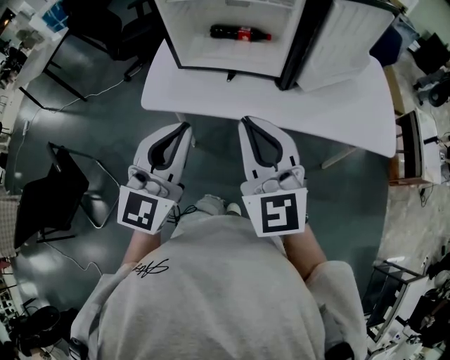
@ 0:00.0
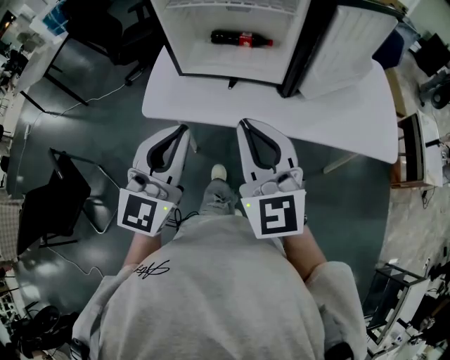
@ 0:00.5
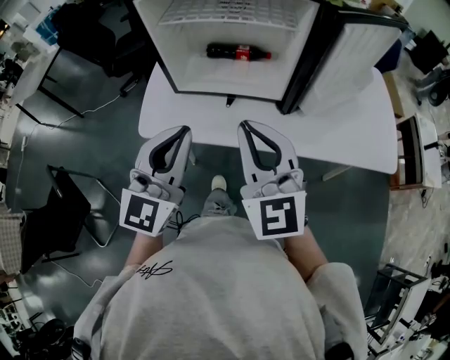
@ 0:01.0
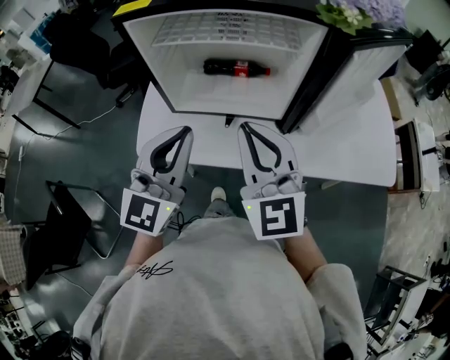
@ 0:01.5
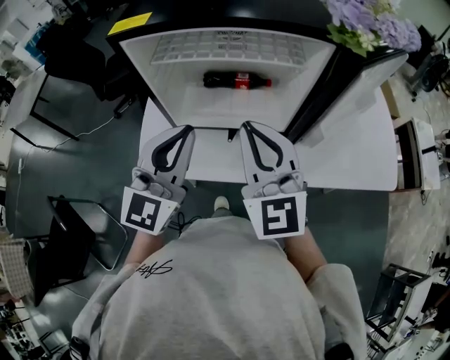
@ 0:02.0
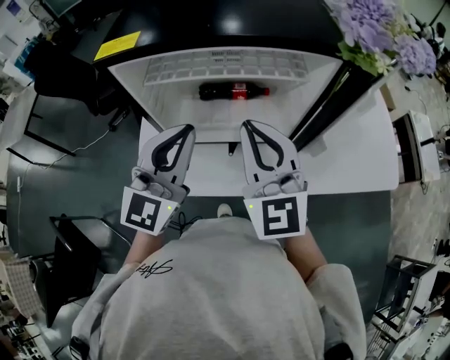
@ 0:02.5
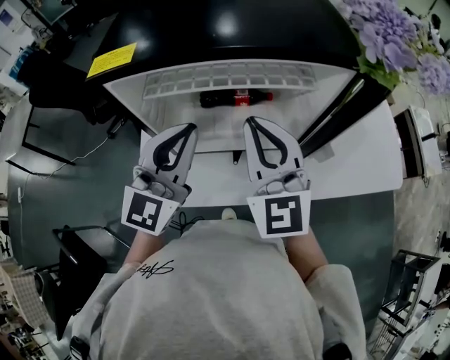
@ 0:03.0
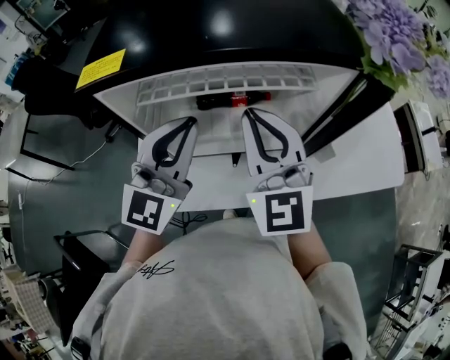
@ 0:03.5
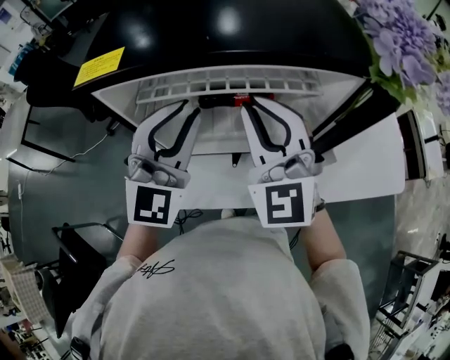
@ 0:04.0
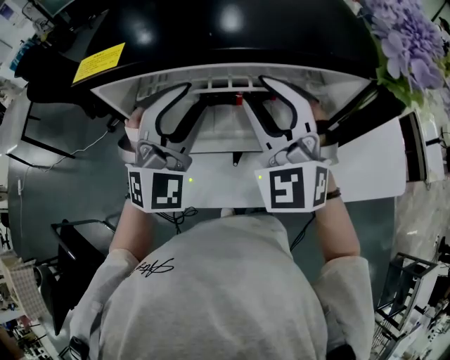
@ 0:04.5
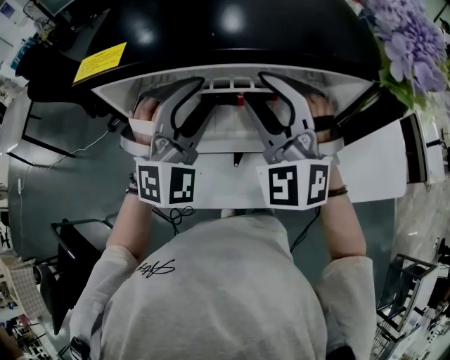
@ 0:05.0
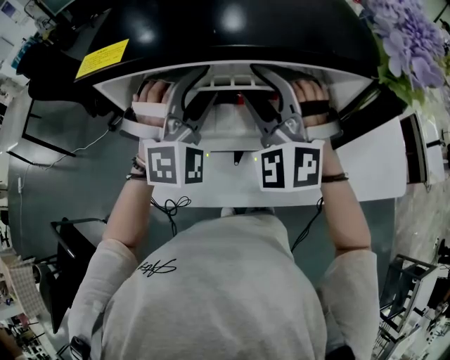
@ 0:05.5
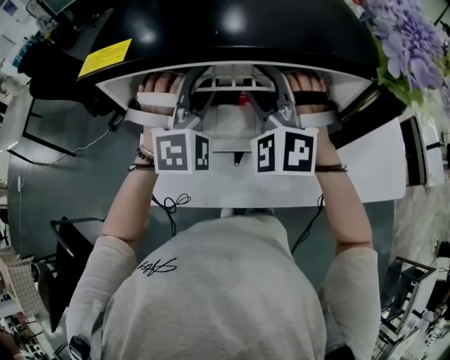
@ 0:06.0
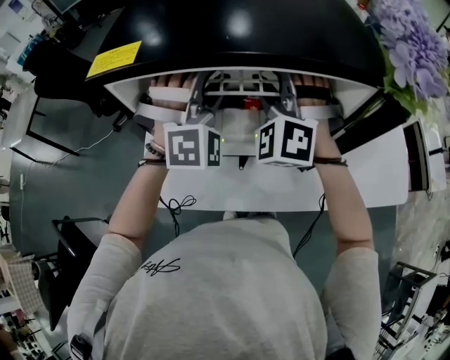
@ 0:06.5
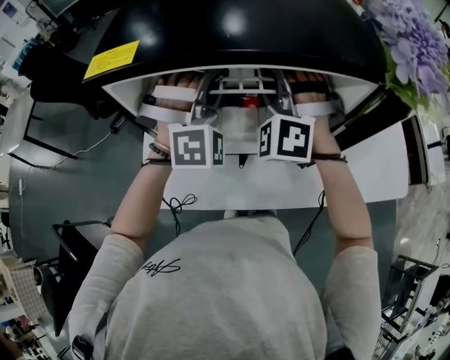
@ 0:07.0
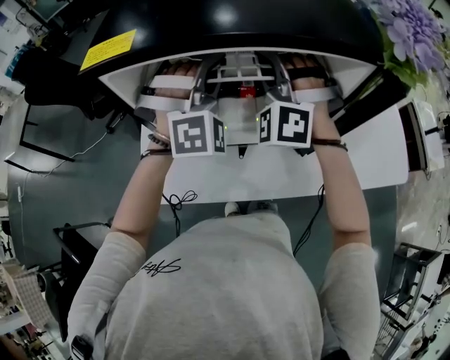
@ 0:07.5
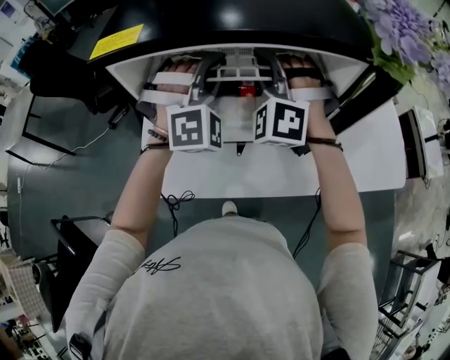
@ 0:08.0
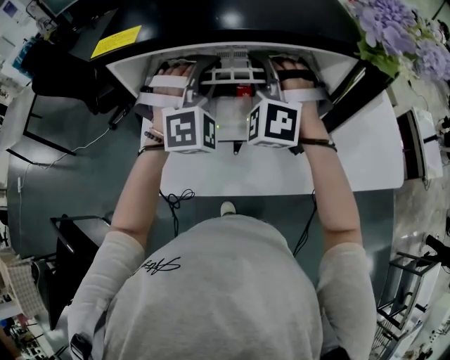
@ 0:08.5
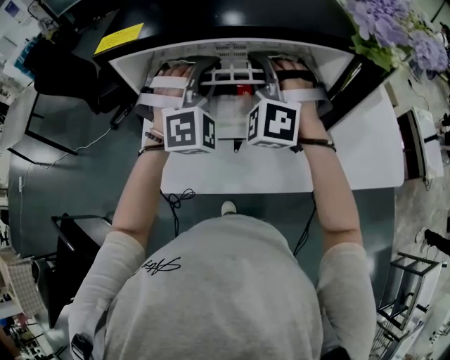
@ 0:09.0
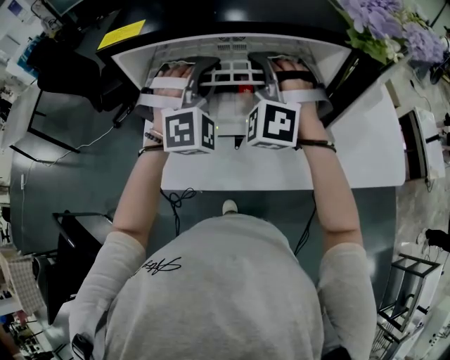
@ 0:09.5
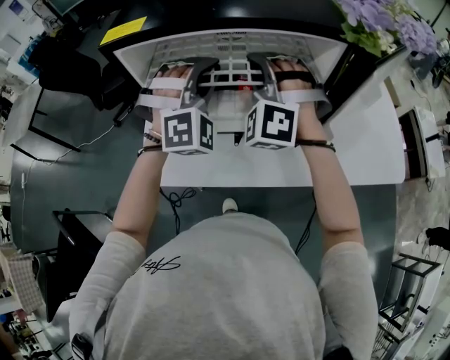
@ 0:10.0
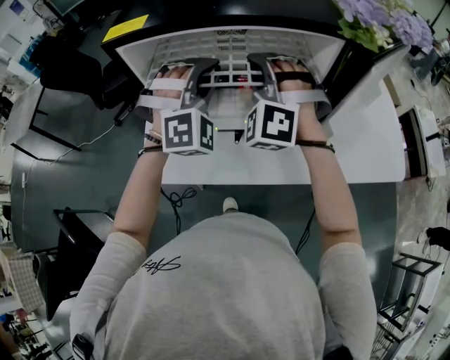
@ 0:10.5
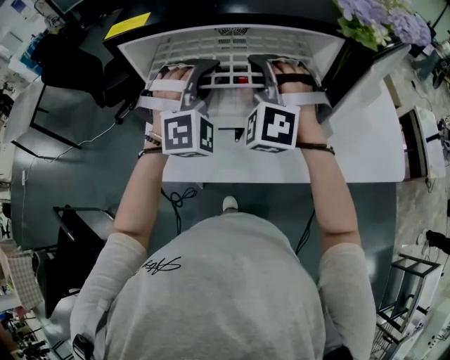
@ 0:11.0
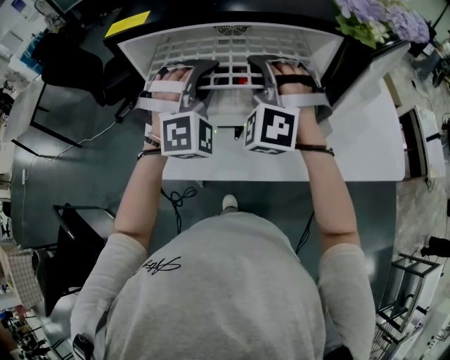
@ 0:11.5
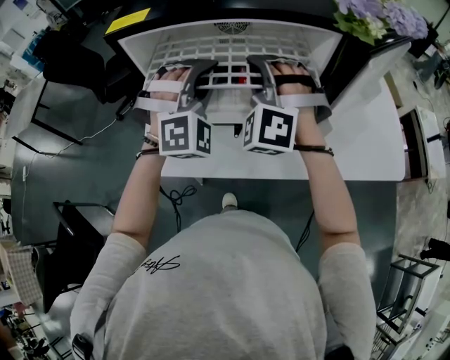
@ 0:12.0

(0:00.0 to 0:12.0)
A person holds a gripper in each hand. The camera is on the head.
0:00.0 - 0:02.0: The grippers both shift forward by about 20 cm.
0:02.0 - 0:04.0: Both grippers move forward, about 10 cm. The left gripper changes its angle by approximately 20 degrees.
0:04.0 - 0:06.0: The two grippers go some 10 cm forward. The right gripper changes its angle by about 40 degrees, and opens its fingers, while the left gripper twists approximately 40 degrees clockwise, seen from behind, and opens up.
0:06.0 - 0:08.0: The left gripper closes its fingers; the right gripper closes its fingers.
0:08.0 - 0:10.0: There are only small adjustments of the grippers.
0:10.0 - 0:12.0: The grippers move only a little.

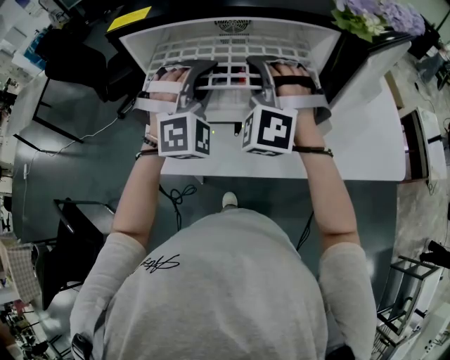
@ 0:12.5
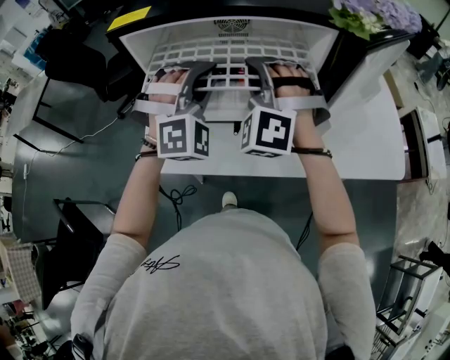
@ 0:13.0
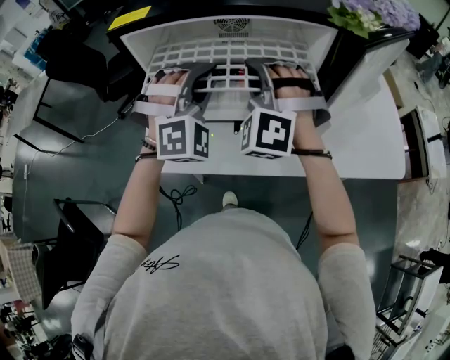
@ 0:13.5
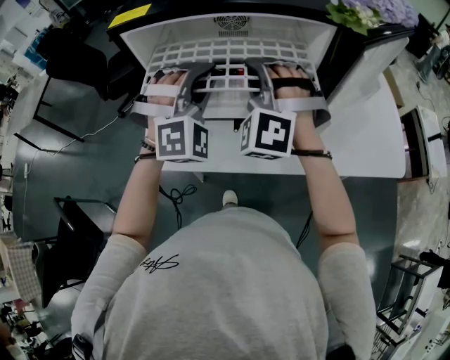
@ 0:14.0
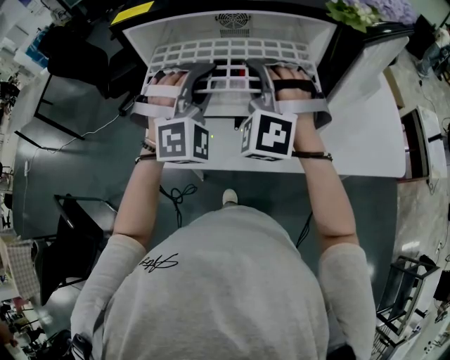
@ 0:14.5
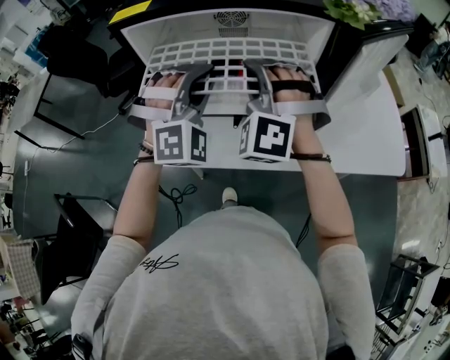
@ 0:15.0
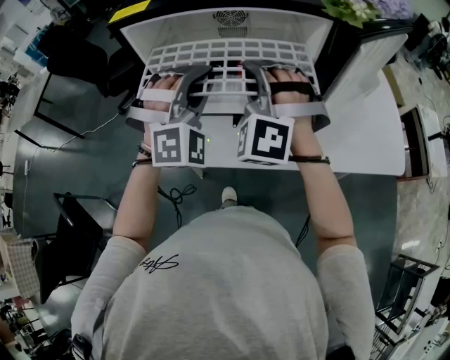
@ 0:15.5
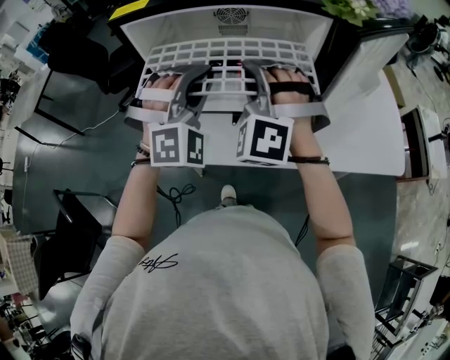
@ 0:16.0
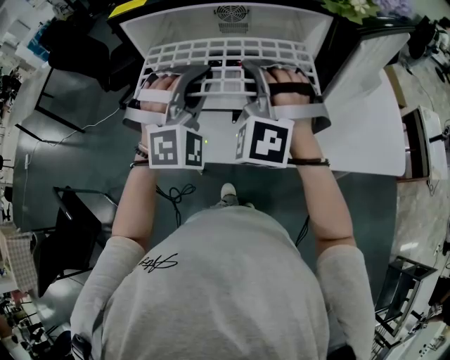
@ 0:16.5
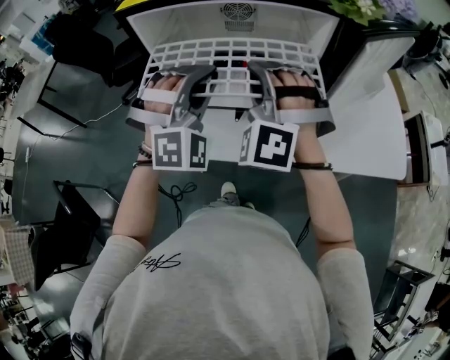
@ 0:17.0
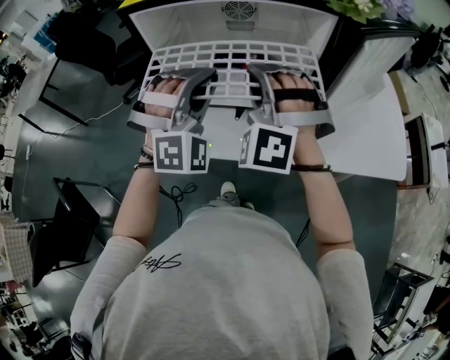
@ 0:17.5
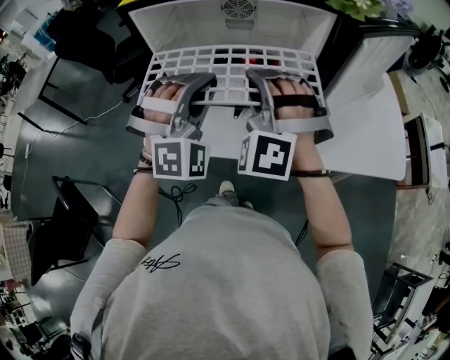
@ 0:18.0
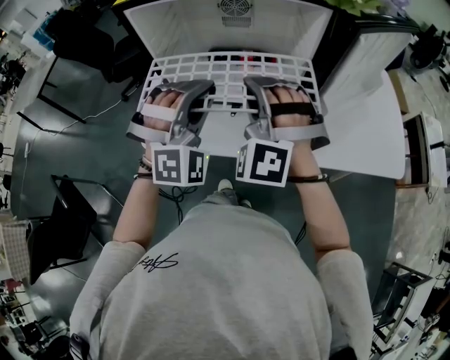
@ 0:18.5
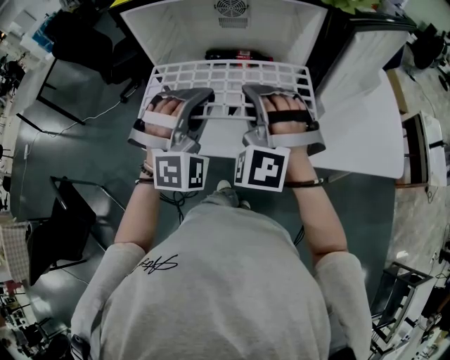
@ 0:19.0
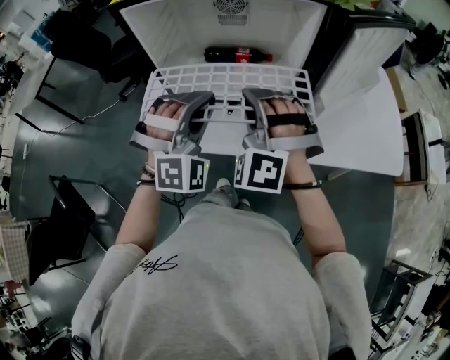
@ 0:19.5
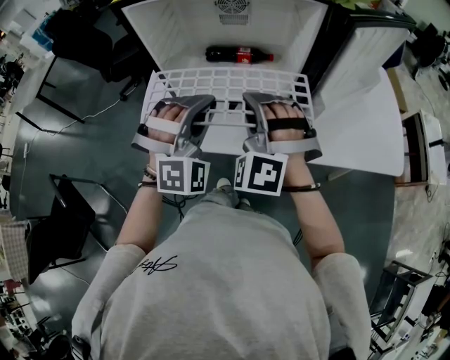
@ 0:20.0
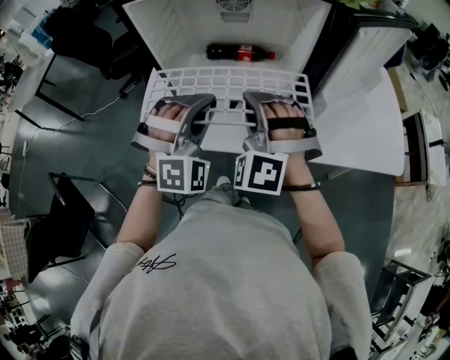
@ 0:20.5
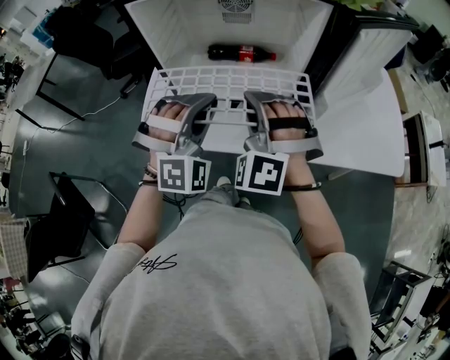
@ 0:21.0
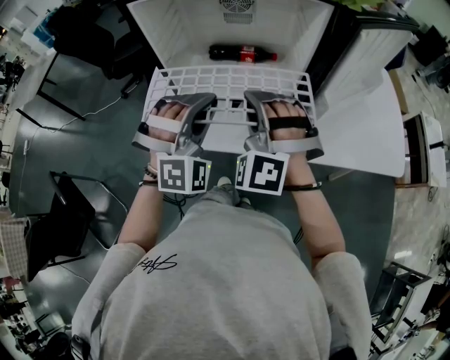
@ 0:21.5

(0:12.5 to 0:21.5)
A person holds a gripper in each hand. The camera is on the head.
0:12.5 - 0:14.5: The grippers make only small movements.
0:14.5 - 0:17.0: The grippers stay close to where they were, moving slightly.
0:17.0 - 0:19.5: The grippers both shift downward and backward by roughly 10 cm.
0:19.5 - 0:21.5: The grippers make only small movements.

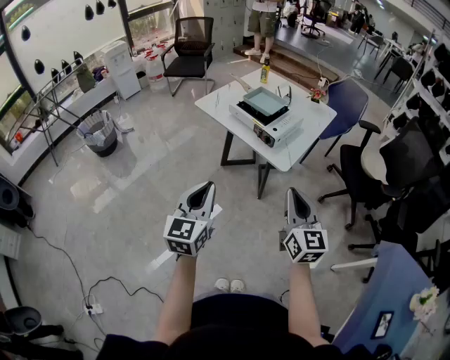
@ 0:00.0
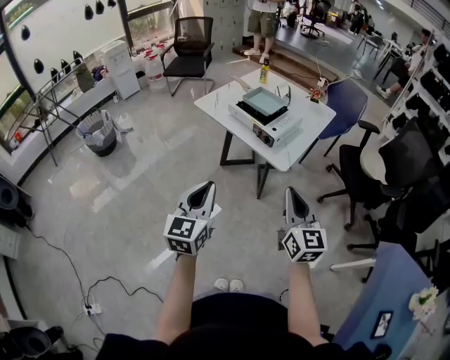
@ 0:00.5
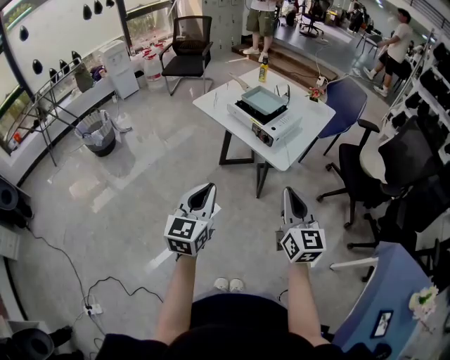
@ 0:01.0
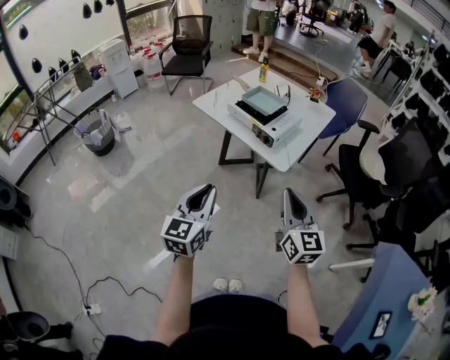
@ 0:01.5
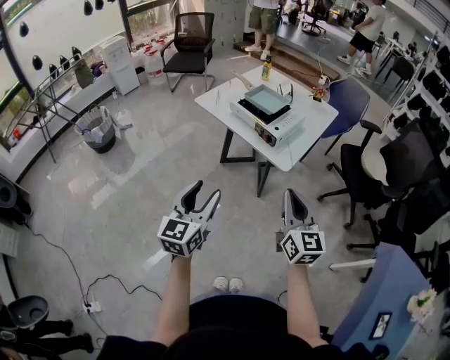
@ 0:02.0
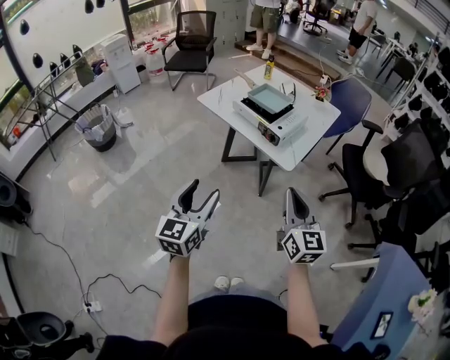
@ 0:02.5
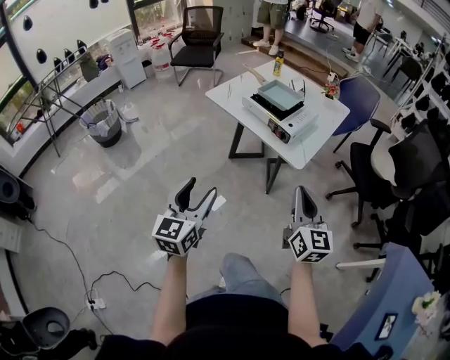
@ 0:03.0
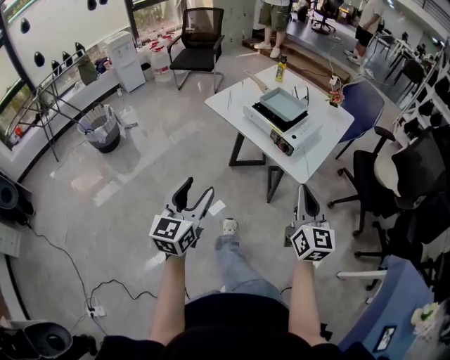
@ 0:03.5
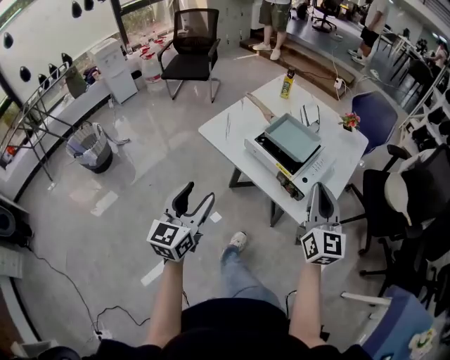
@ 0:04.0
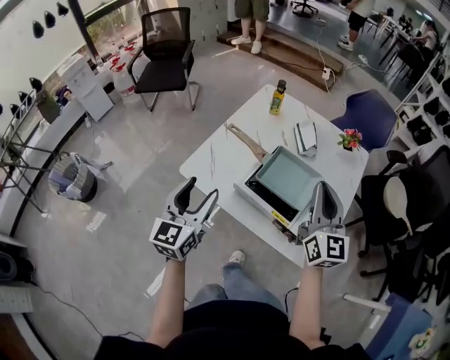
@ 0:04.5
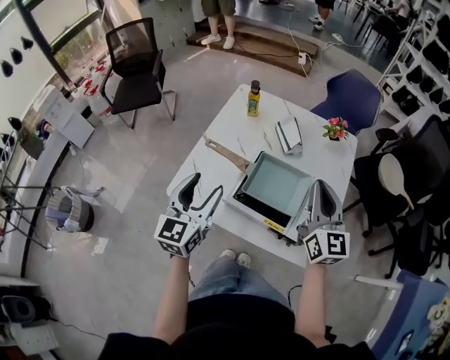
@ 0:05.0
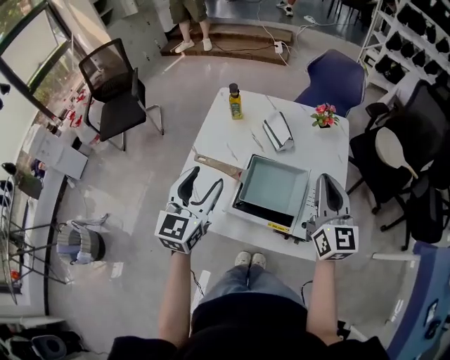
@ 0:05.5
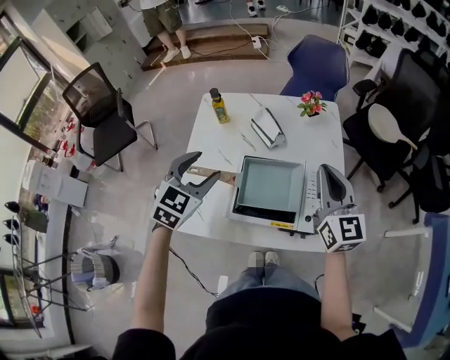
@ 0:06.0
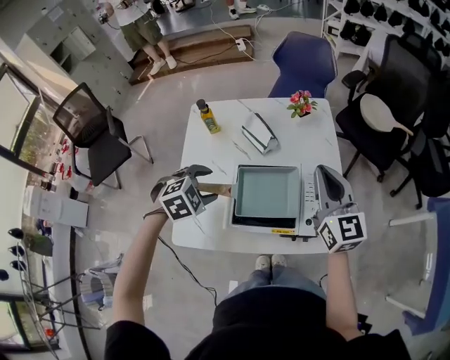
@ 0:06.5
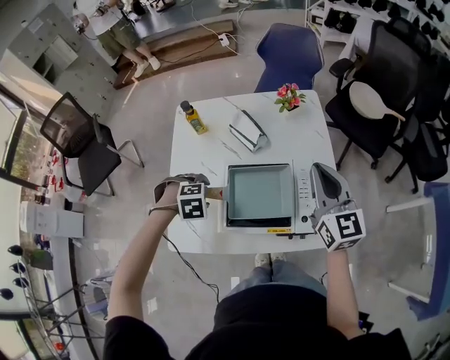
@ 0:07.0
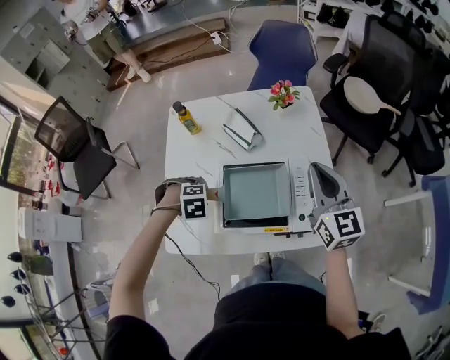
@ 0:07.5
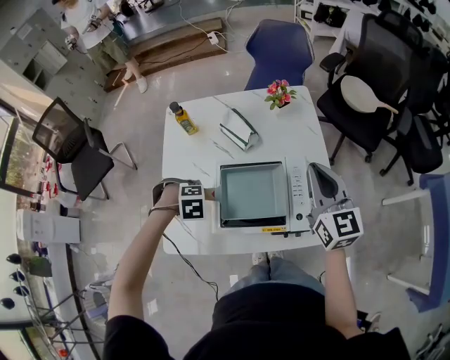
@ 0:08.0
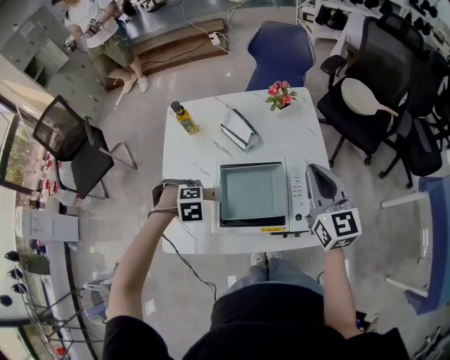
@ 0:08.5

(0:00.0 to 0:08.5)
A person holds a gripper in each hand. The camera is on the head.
0:00.0 - 0:02.0: The left gripper opens up.
0:02.0 - 0:04.0: The left gripper is displaced forward and to the left by some 30 cm. Meanwhile the right gripper travels forward by about 30 cm.
0:04.0 - 0:06.5: The right gripper changes place by some 25 cm, and changes its angle by roughly 30 degrees. Meanwhile the left gripper ends up approximately 50 cm from where it was, and tilts its fingers approximately 60 degrees downward.
0:06.5 - 0:08.5: The left gripper goes approximately 10 cm downward, swivels some 30 degrees, and closes.
